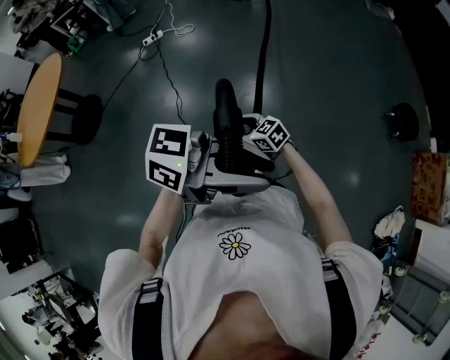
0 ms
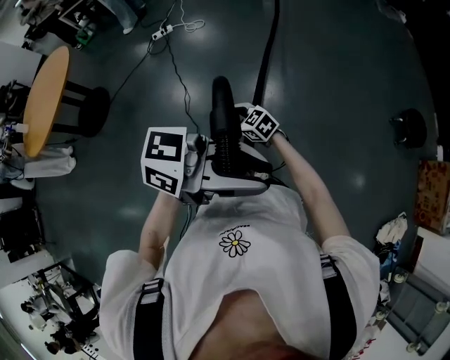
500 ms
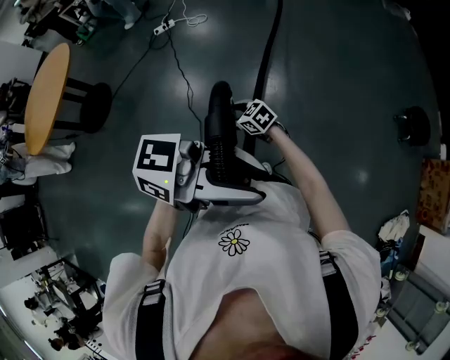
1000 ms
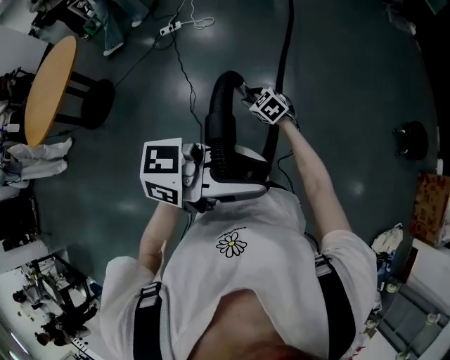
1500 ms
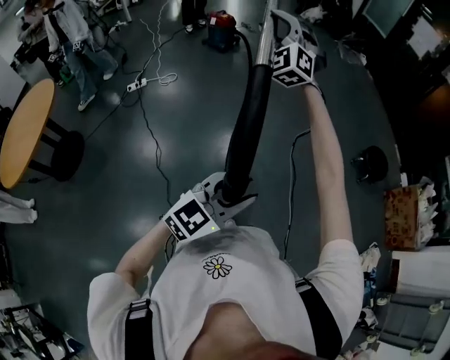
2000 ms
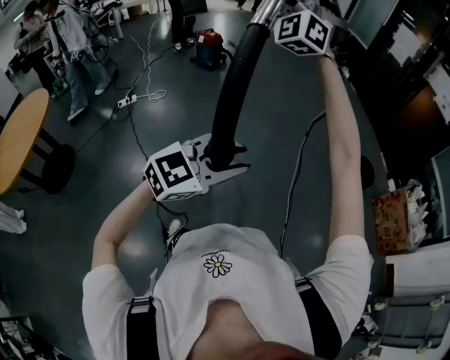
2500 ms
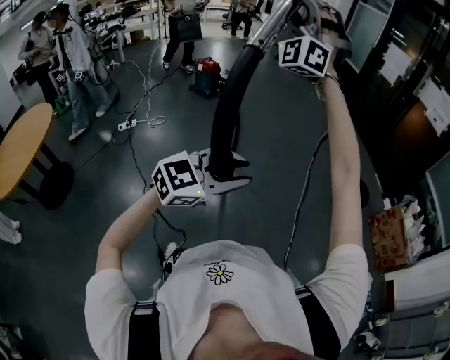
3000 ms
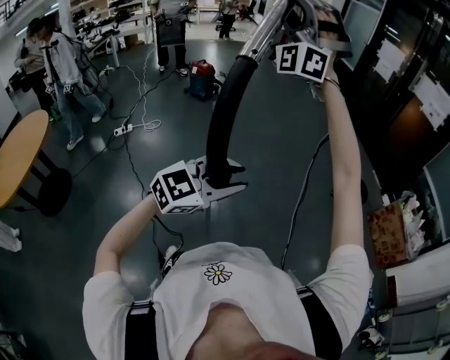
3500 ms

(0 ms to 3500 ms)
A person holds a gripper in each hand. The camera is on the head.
0 ms - 2000 ms: The left gripper changes place by approximately 10 cm, and turns by some 50 degrees, while the right gripper travels upward by some 50 cm, and angles its fingers upward, by roughly 30 degrees.
2000 ms - 3500 ms: The right gripper is displaced upward and to the right by approximately 25 cm, and angles its fingers upward, by approximately 30 degrees; the left gripper goes roughly 5 cm upward.

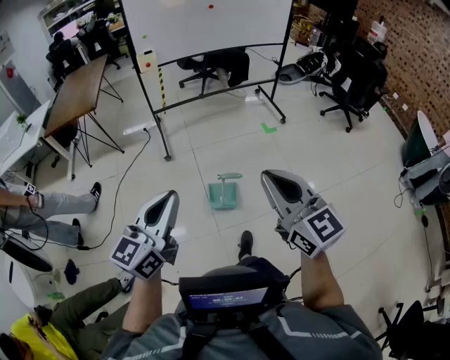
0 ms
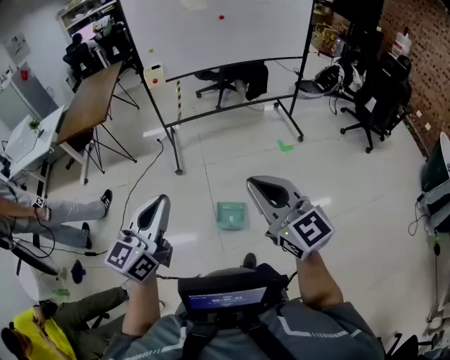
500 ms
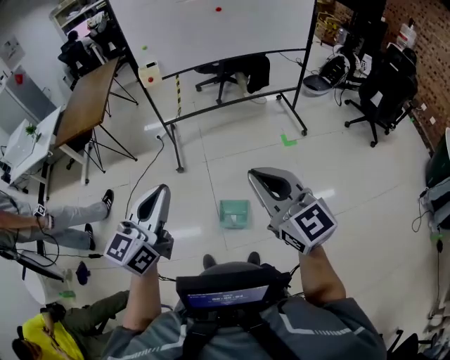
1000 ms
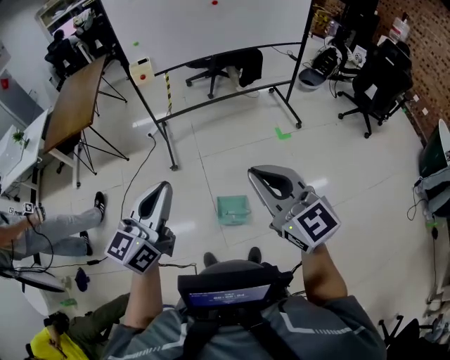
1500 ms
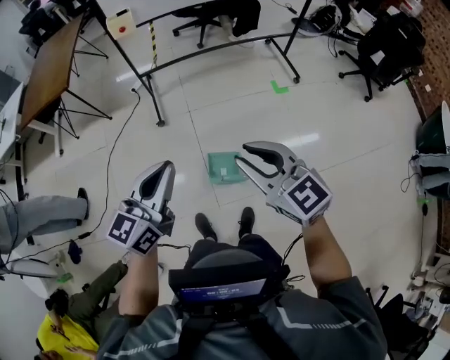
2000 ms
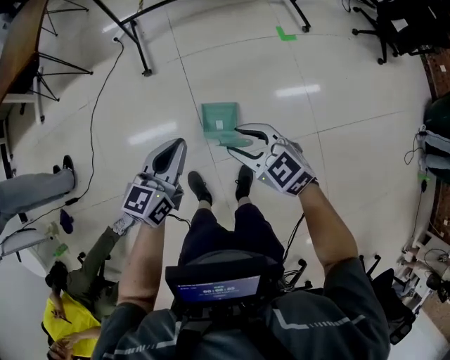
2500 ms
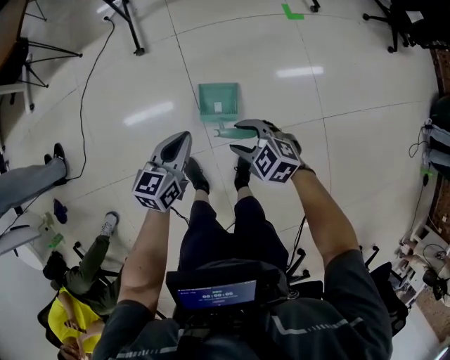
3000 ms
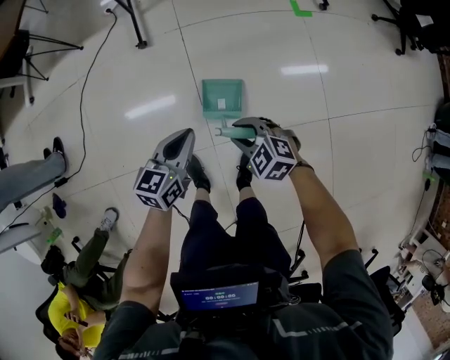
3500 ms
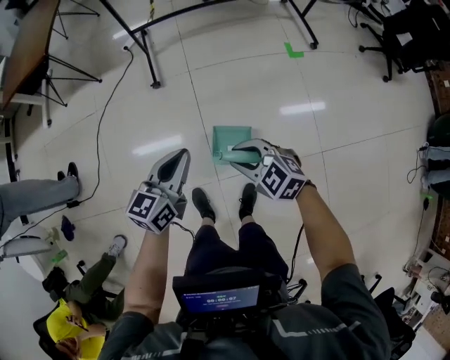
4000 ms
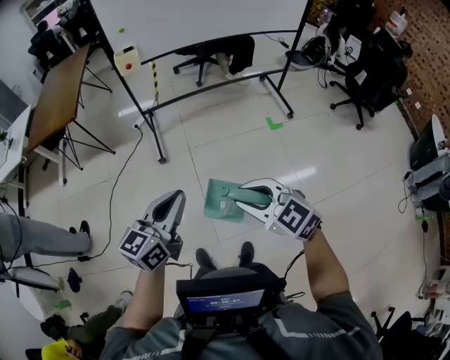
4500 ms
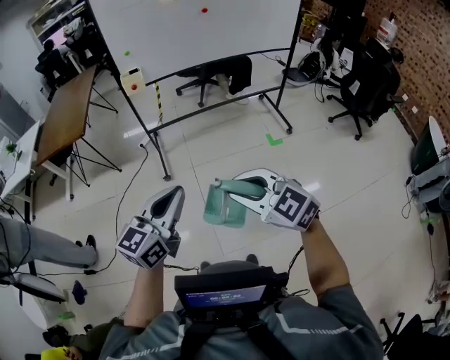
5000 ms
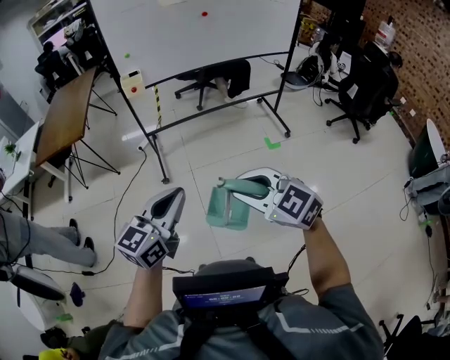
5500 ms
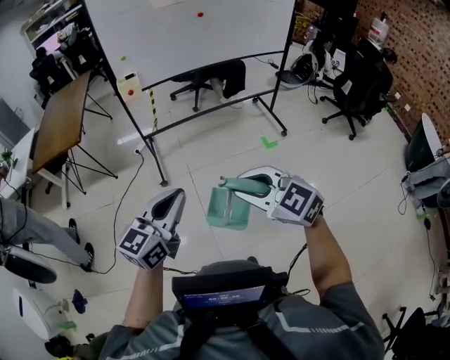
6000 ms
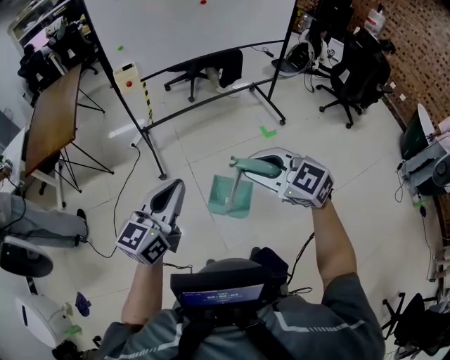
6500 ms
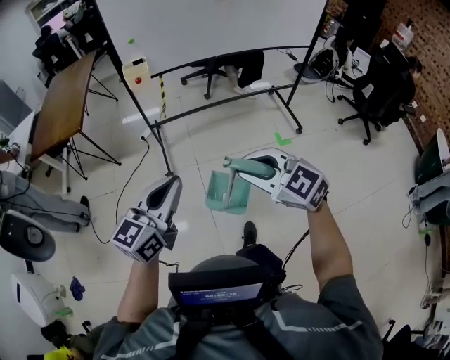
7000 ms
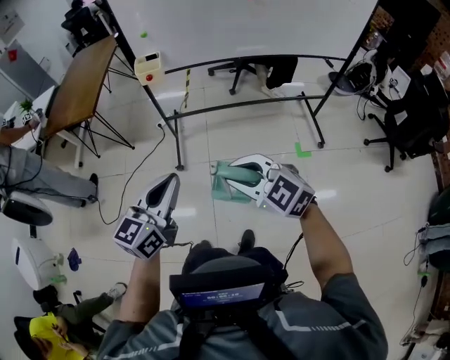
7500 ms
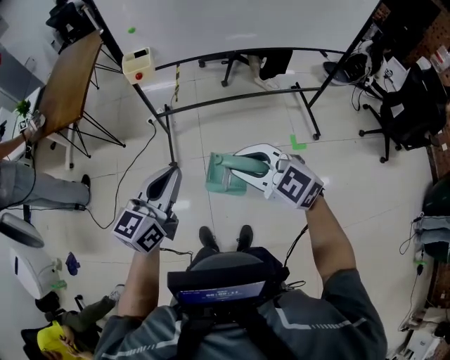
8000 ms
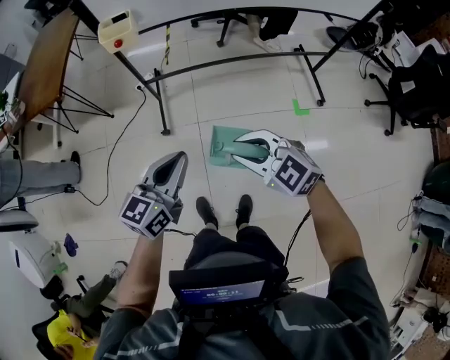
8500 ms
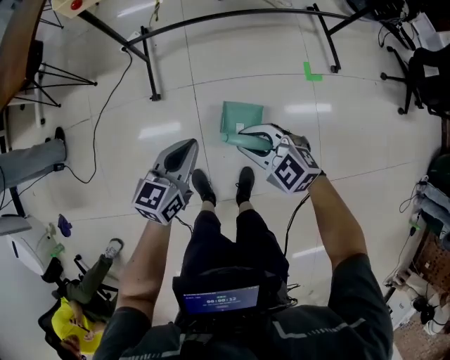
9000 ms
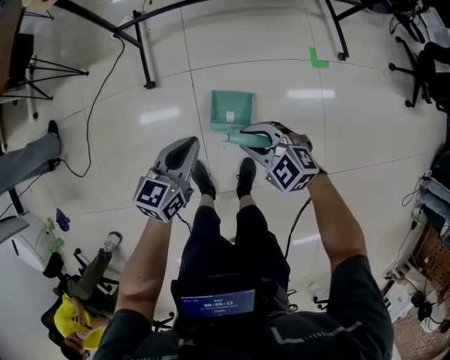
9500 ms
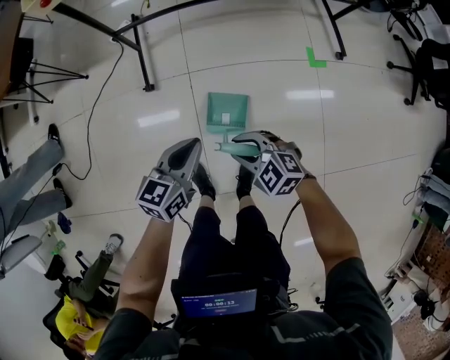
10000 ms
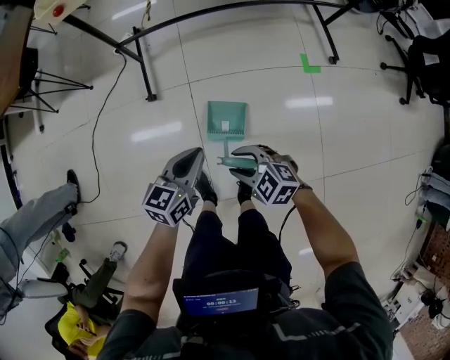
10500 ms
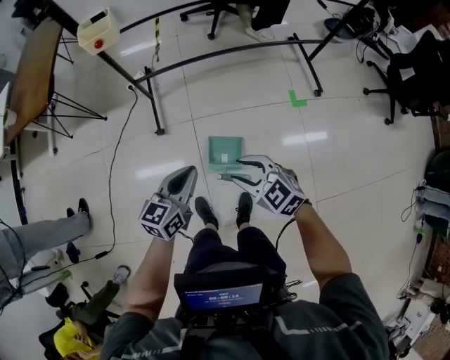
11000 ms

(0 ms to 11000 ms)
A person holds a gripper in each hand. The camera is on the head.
0 ms - 2000 ms: Both grippers are carried forward, about 40 cm. The right gripper rotates some 20 degrees, and opens its fingers.
2000 ms - 3500 ms: Both grippers travel together downward, about 50 cm. The left gripper changes its angle by some 20 degrees. Meanwhile the right gripper tips its fingers downward by some 40 degrees, and opens and closes again.
3500 ms - 5500 ms: Both grippers move upward, approximately 60 cm. The left gripper rotates roughly 30 degrees. The right gripper turns by roughly 30 degrees.
5500 ms - 7500 ms: The two grippers go approximately 35 cm forward.
7500 ms - 9000 ms: The grippers both shift downward and forward by approximately 50 cm. The left gripper swivels roughly 20 degrees.
9000 ms - 11000 ms: The grippers both shift upward and backward by about 15 cm.

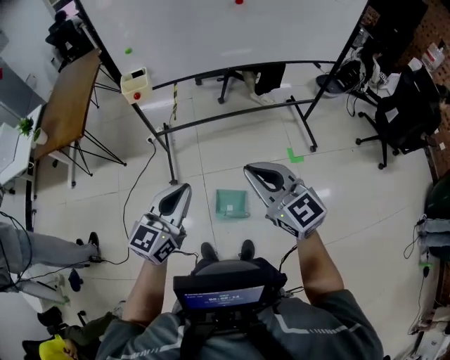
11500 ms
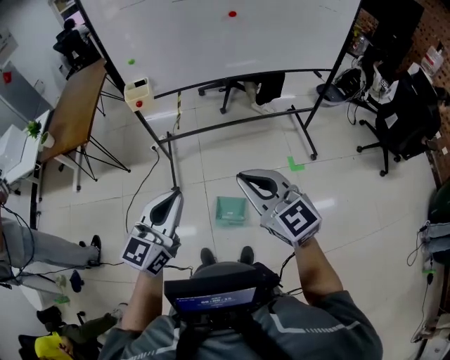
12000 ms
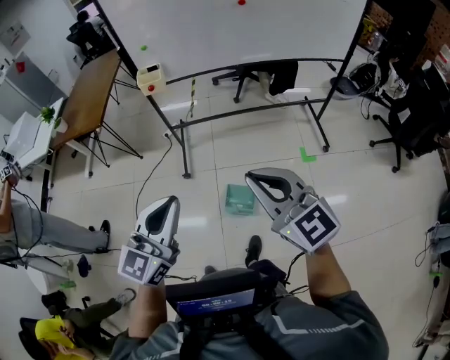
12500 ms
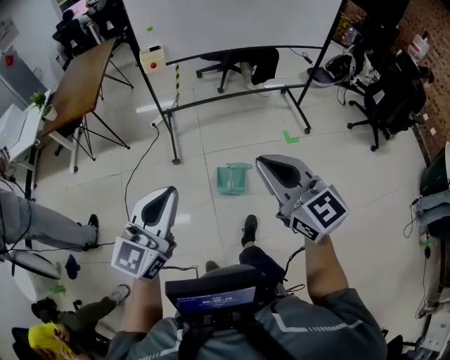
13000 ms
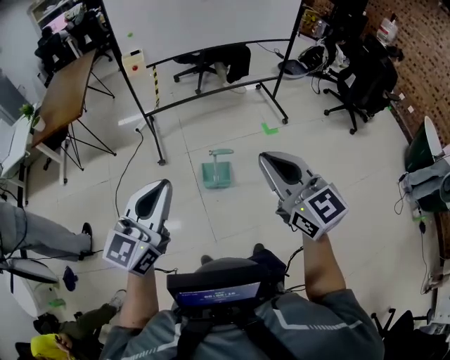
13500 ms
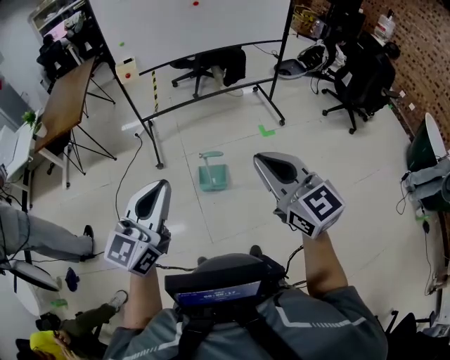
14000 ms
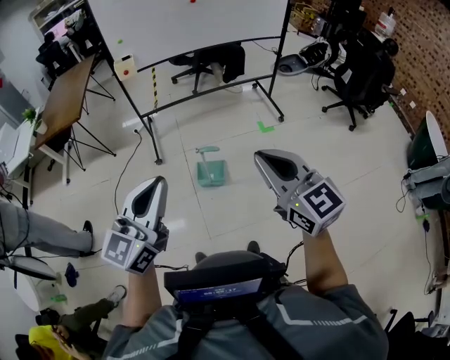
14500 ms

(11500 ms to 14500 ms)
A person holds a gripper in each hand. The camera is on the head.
11500 ms - 13000 ms: Both grippers travel together backward, some 40 cm.
13000 ms - 14500 ms: The two grippers go approximately 25 cm backward and to the right.

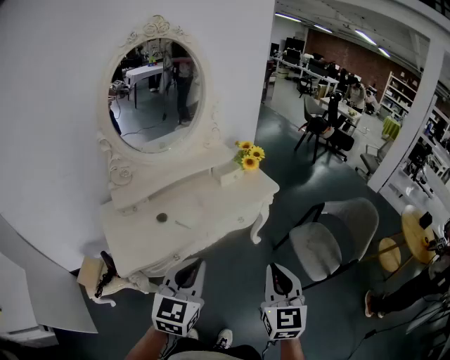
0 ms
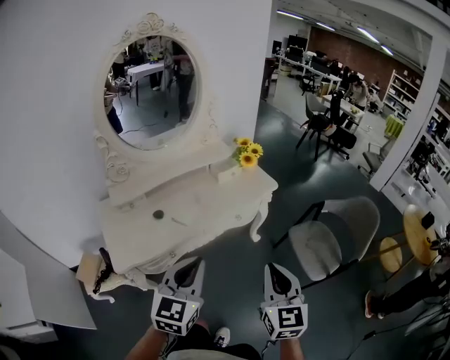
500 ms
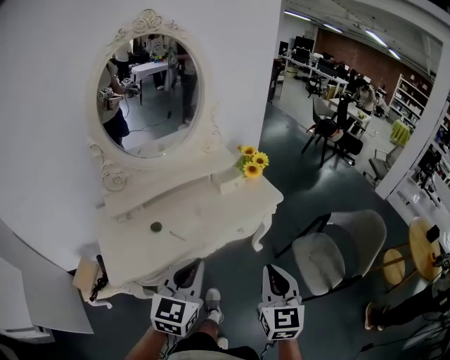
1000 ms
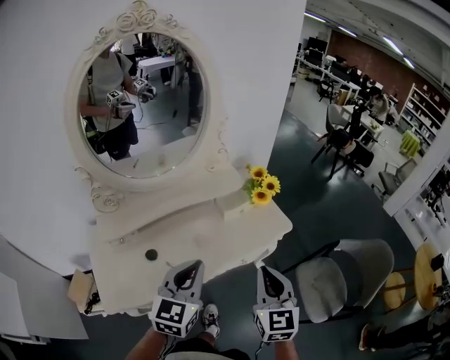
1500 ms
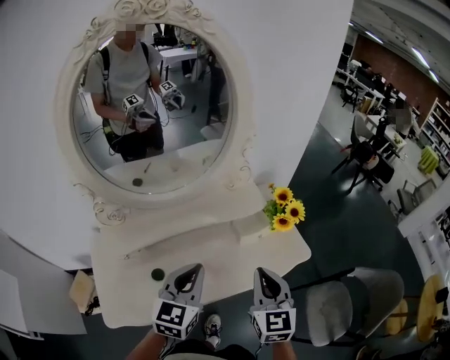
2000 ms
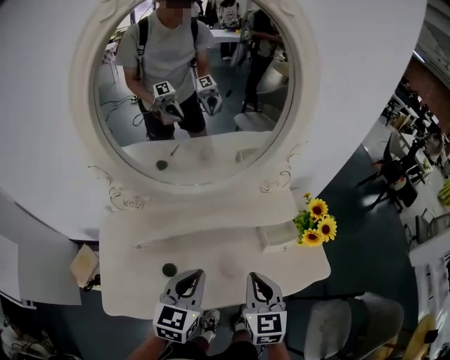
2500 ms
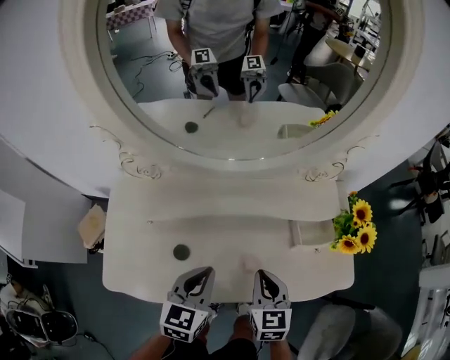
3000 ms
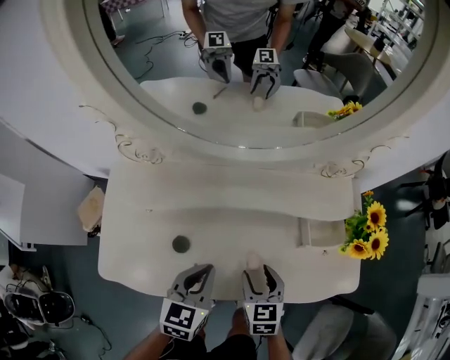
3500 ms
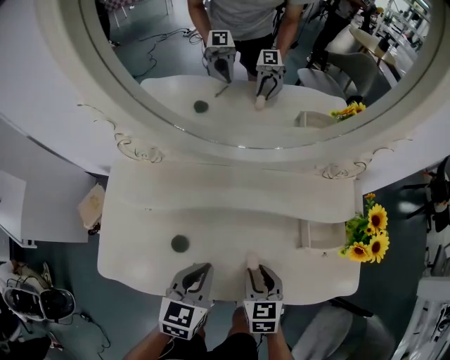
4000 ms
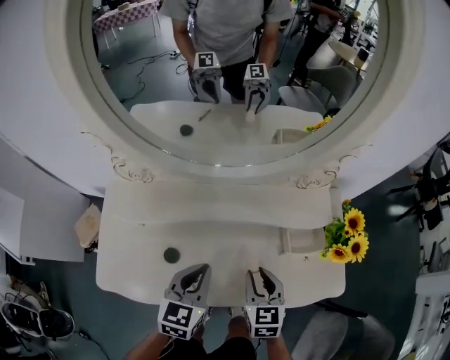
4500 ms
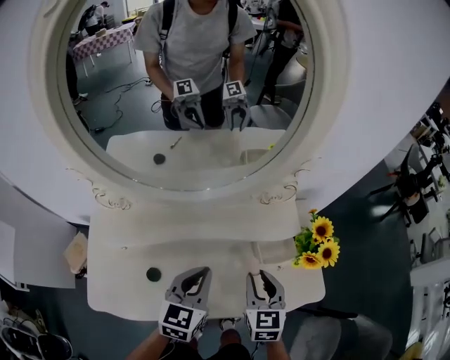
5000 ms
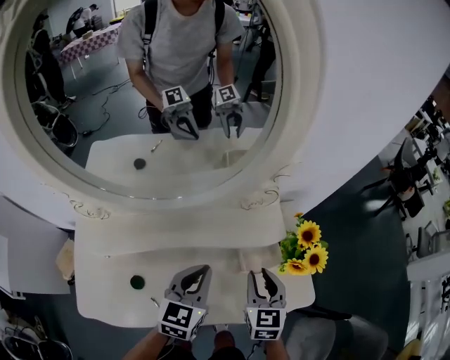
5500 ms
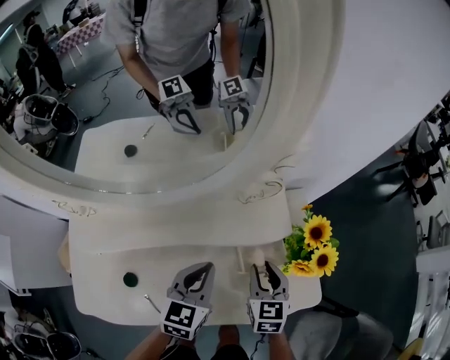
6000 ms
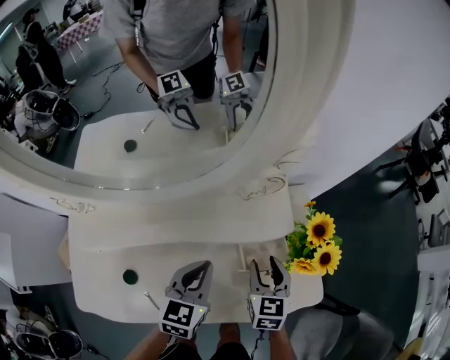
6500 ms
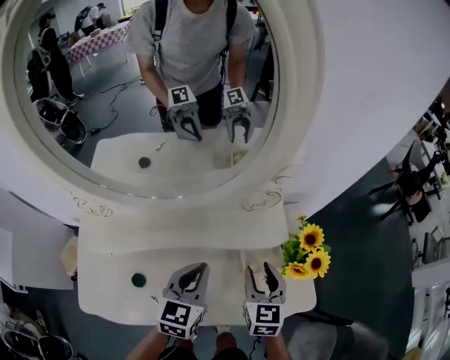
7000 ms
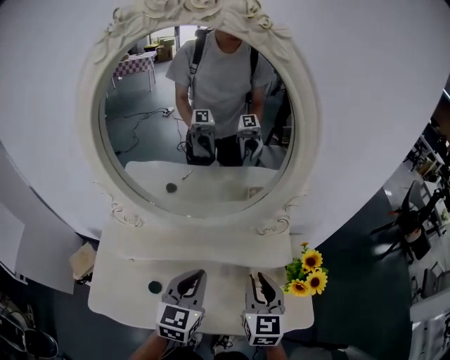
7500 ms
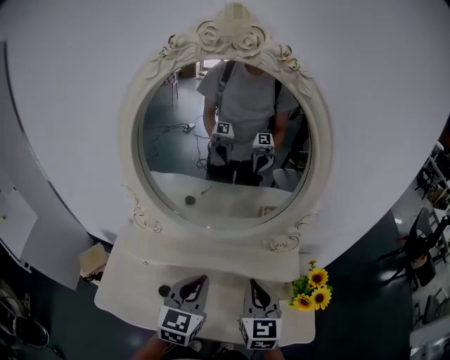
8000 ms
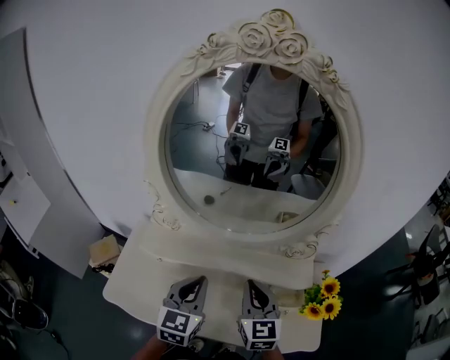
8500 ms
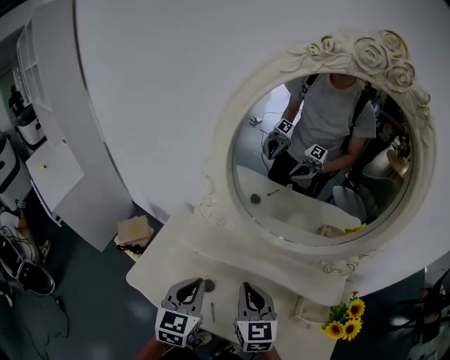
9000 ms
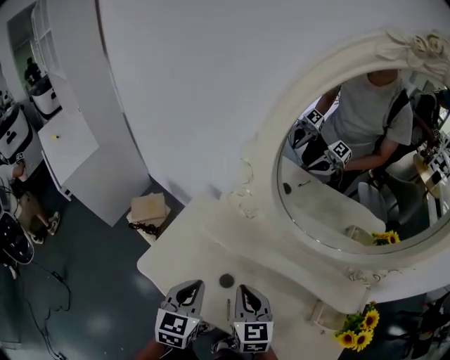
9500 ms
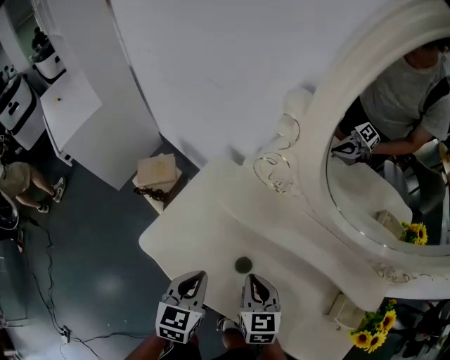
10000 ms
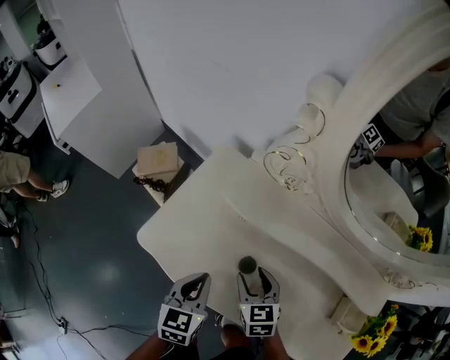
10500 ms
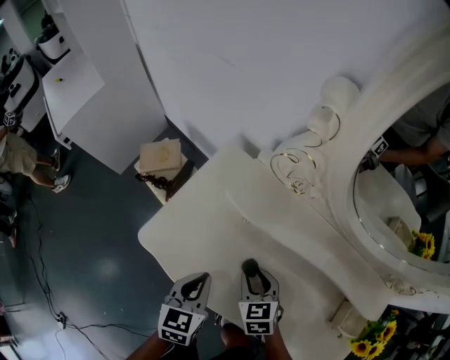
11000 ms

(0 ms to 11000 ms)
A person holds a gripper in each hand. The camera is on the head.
0 ms - 2000 ms: Both grippers travel together forward, about 35 cm.
2000 ms - 3500 ms: Both grippers move downward and to the left, some 25 cm. The left gripper rotates roughly 30 degrees. Meanwhile the right gripper rotates roughly 40 degrees, and opens.
3500 ms - 5500 ms: The left gripper travels to the right, forward and upward by roughly 20 cm. The right gripper heads to the right, upward and forward, covering roughly 25 cm, and closes.
5500 ms - 7500 ms: The grippers both shift upward and to the left by roughly 10 cm.
7500 ms - 9000 ms: The left gripper shifts by some 20 cm, and rotates about 30 degrees, while the right gripper shifts by about 25 cm, rotates some 30 degrees, and closes.
9000 ms - 11000 ms: The grippers both shift downward and to the left by approximately 25 cm. The left gripper swivels some 20 degrees; the right gripper angles its fingers downward, by about 30 degrees, and opens.
